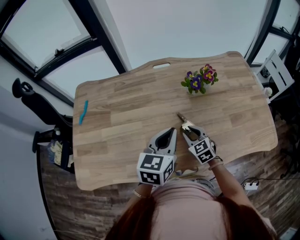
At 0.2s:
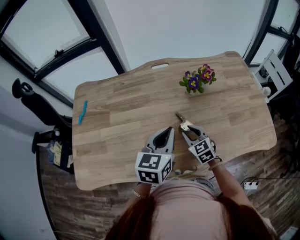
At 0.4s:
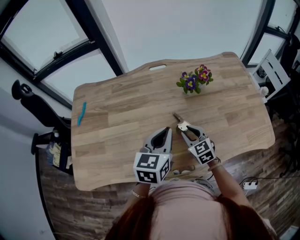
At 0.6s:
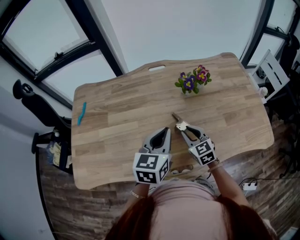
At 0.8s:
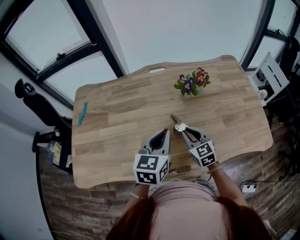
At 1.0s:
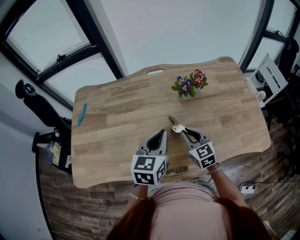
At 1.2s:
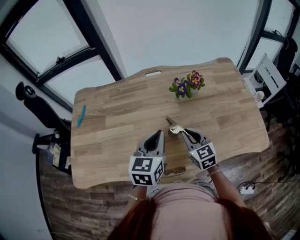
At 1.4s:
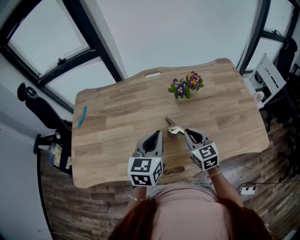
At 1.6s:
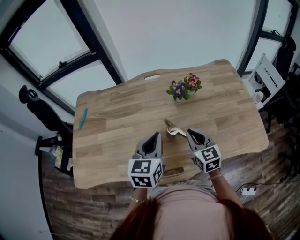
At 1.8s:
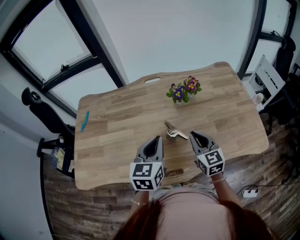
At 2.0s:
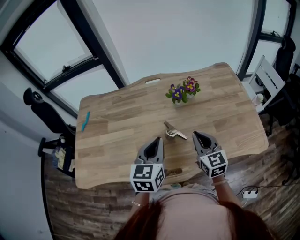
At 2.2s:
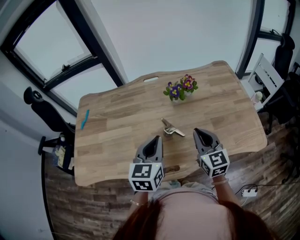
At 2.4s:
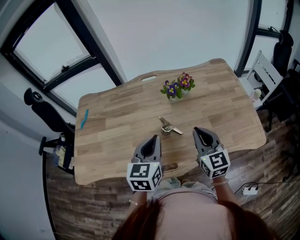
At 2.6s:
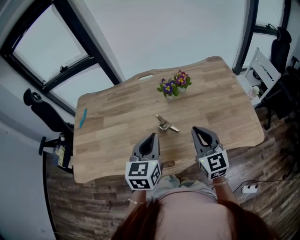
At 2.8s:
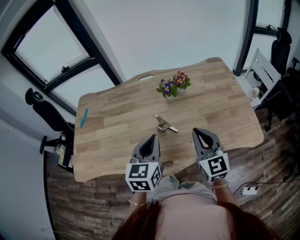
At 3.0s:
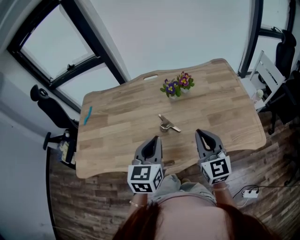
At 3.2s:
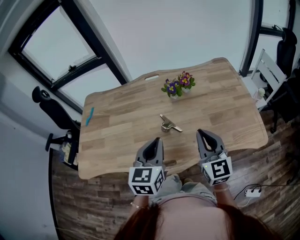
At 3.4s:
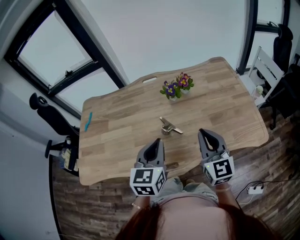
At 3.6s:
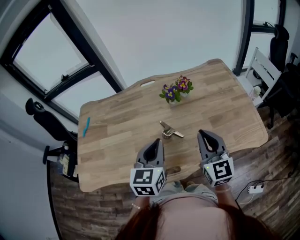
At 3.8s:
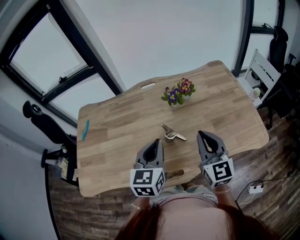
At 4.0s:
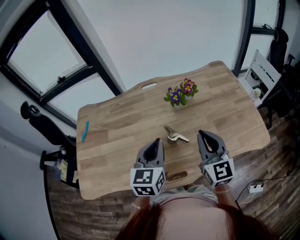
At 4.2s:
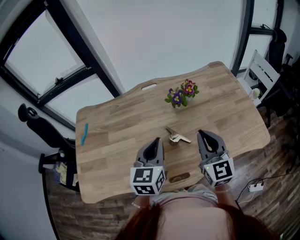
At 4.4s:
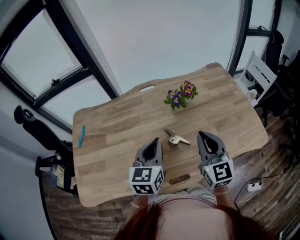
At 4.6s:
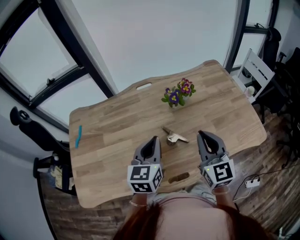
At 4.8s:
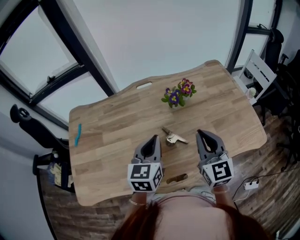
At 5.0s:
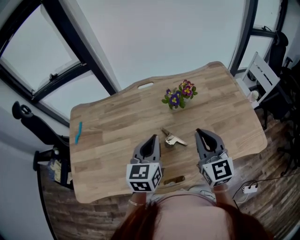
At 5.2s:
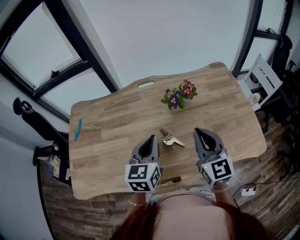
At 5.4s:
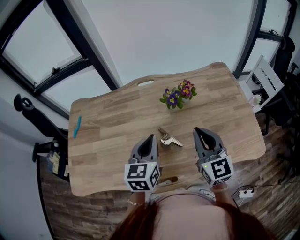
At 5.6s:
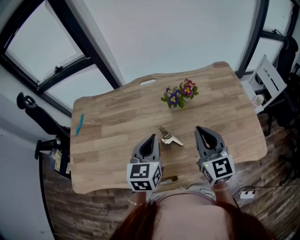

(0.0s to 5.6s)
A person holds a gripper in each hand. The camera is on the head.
0.0s - 1.4s: The right gripper is displaced upward and to the right by about 15 cm.
1.4s - 2.8s: The right gripper moves upward, to the right and backward, approximately 20 cm. The left gripper heads backward and to the right, covering some 10 cm.
2.8s - 4.2s: The left gripper moves forward and to the left, approximately 10 cm, while the right gripper shifts approximately 10 cm to the left and forward.
4.2s - 5.6s: The right gripper ends up approximately 5 cm from where it was.

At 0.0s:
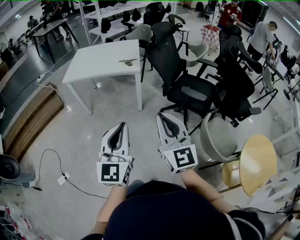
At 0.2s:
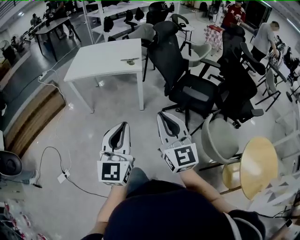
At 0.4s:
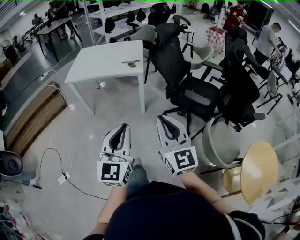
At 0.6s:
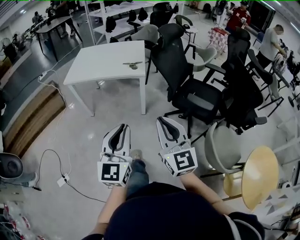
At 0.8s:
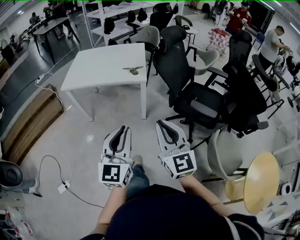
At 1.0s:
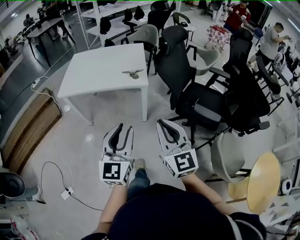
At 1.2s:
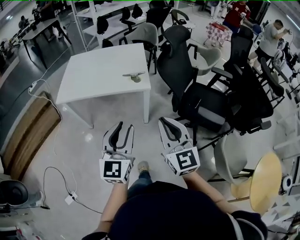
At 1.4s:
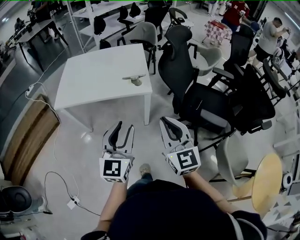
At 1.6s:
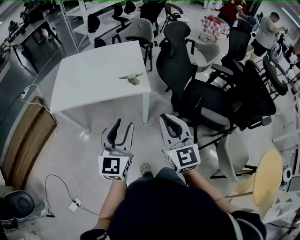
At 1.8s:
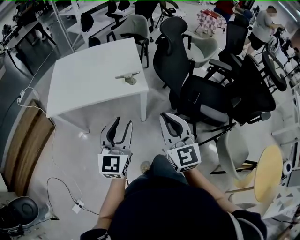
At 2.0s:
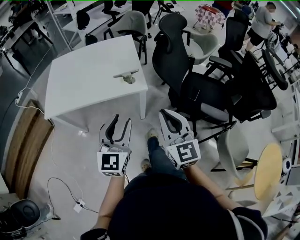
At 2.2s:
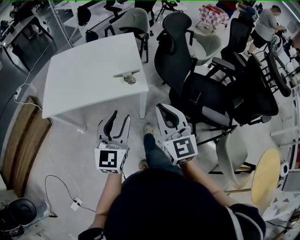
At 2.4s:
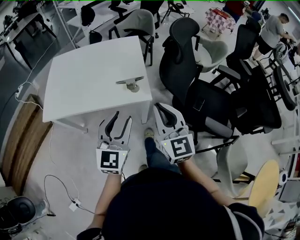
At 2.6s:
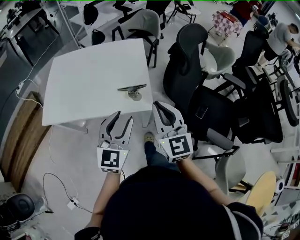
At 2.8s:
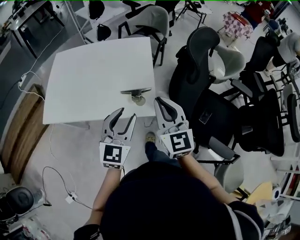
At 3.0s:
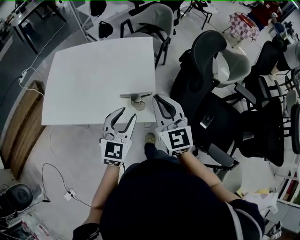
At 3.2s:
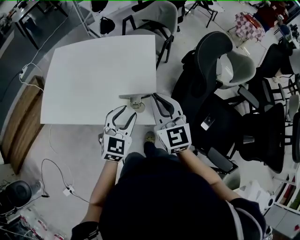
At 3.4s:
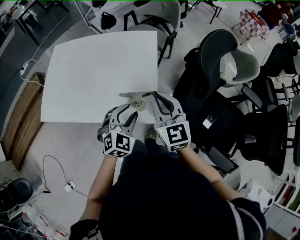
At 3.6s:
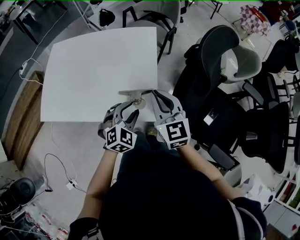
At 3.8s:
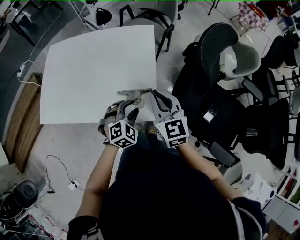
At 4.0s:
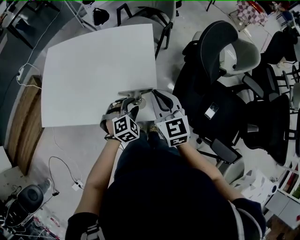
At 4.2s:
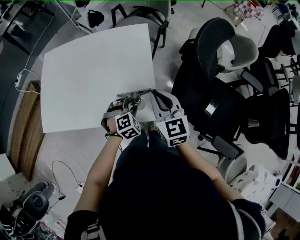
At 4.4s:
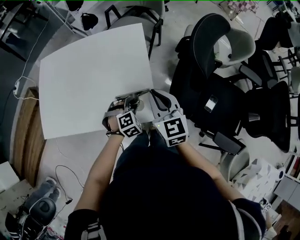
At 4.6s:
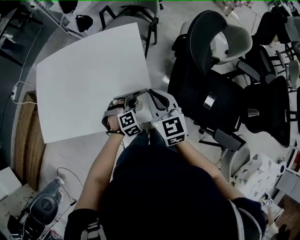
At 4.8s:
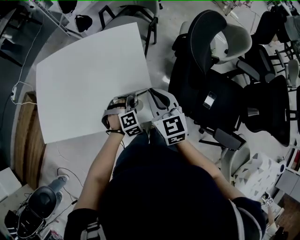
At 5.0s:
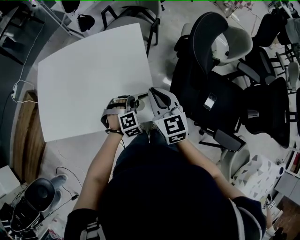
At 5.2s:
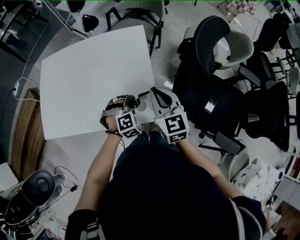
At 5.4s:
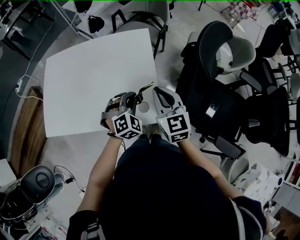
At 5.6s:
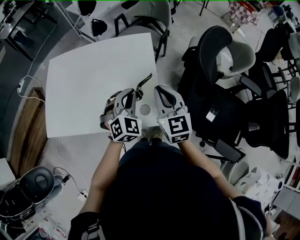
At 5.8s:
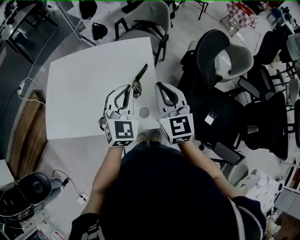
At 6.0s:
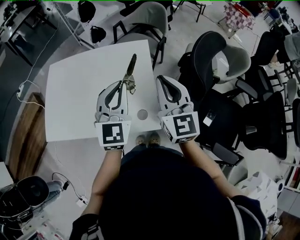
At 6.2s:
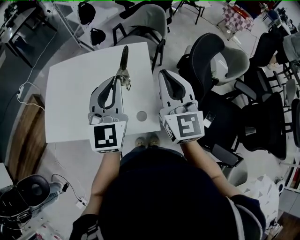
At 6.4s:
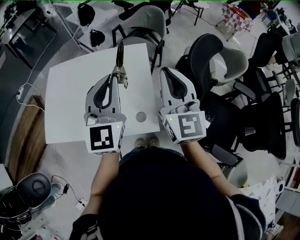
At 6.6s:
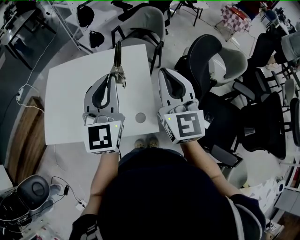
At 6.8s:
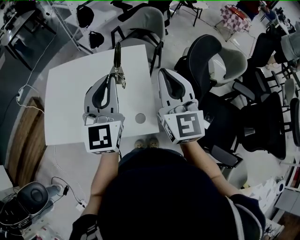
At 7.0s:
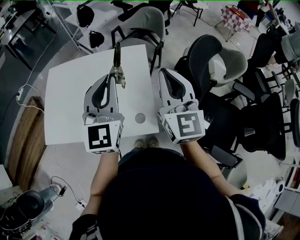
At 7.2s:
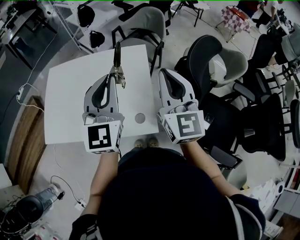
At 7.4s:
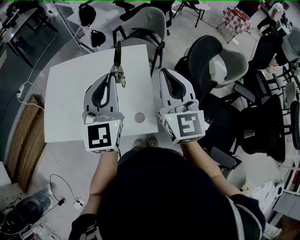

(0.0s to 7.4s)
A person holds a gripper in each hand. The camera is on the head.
0.0s - 1.4s: The two grippers go some 35 cm forward. The left gripper opens up.
1.4s - 3.0s: The grippers both shift forward by some 35 cm.
3.0s - 4.4s: The right gripper is displaced downward and forward by roughly 10 cm, while the left gripper shifts approximately 20 cm downward and forward, and tips its fingers downward by approximately 40 degrees.
4.4s - 6.0s: The right gripper moves upward, about 15 cm. The left gripper is displaced upward by roughly 30 cm, tips its fingers upward by roughly 50 degrees, and closes up.
6.0s - 7.4s: Both grippers move upward, about 5 cm.

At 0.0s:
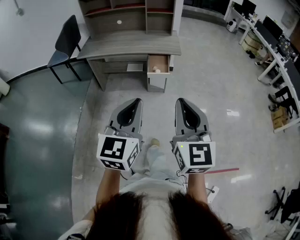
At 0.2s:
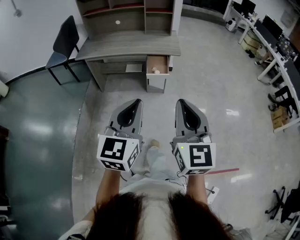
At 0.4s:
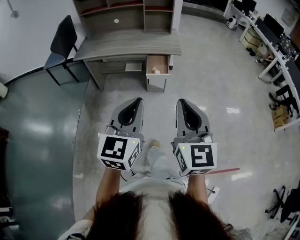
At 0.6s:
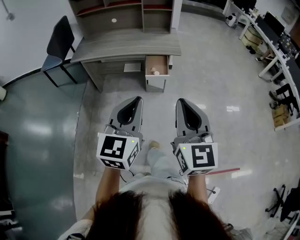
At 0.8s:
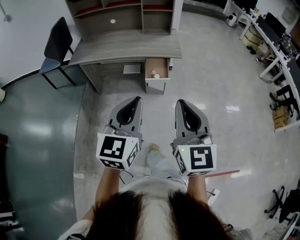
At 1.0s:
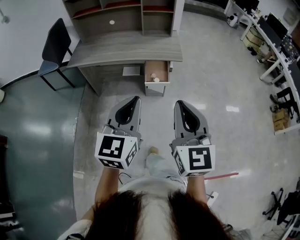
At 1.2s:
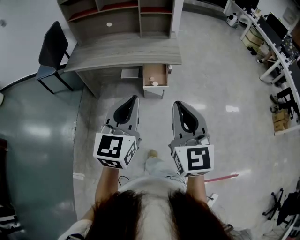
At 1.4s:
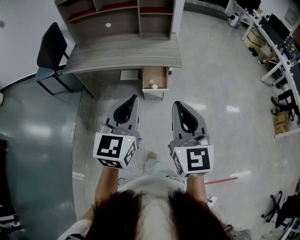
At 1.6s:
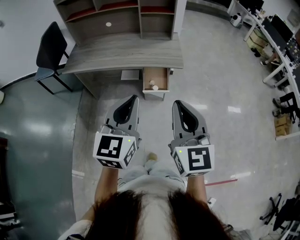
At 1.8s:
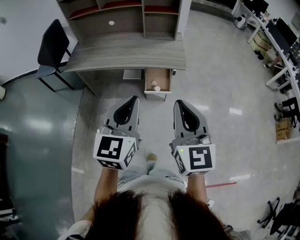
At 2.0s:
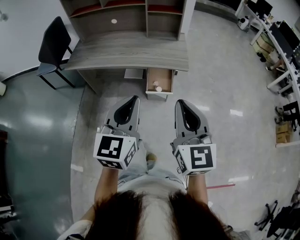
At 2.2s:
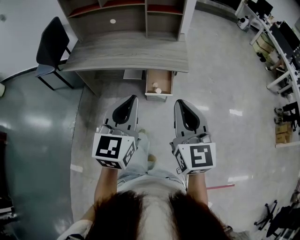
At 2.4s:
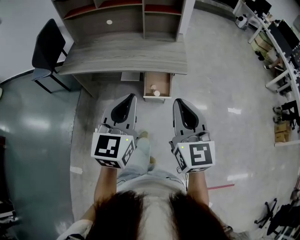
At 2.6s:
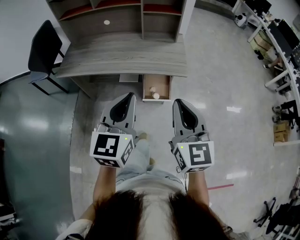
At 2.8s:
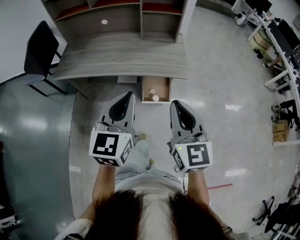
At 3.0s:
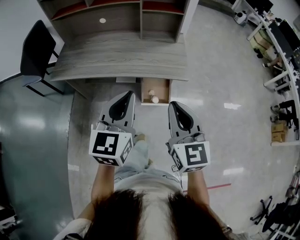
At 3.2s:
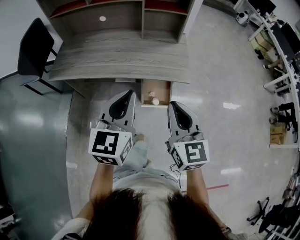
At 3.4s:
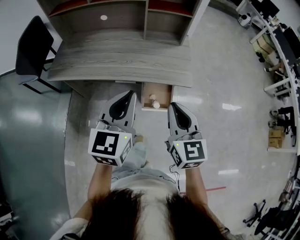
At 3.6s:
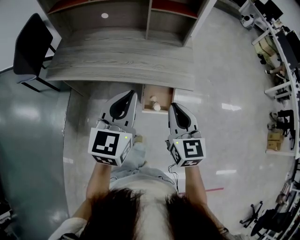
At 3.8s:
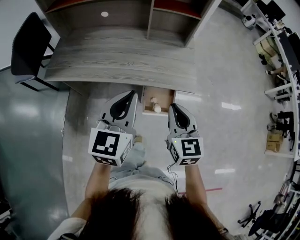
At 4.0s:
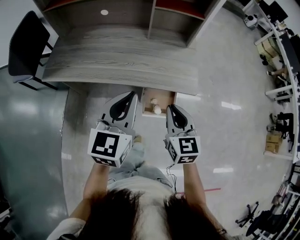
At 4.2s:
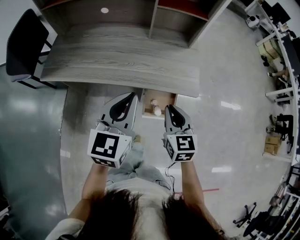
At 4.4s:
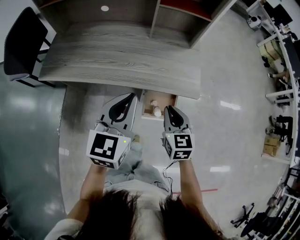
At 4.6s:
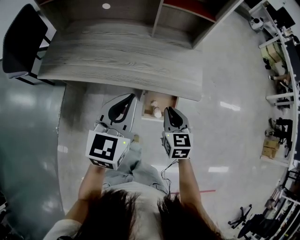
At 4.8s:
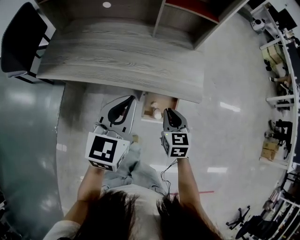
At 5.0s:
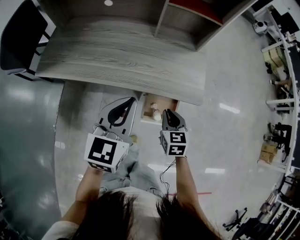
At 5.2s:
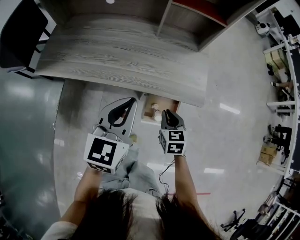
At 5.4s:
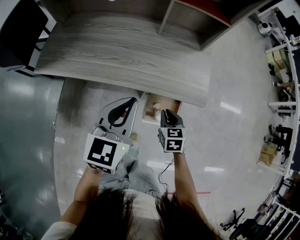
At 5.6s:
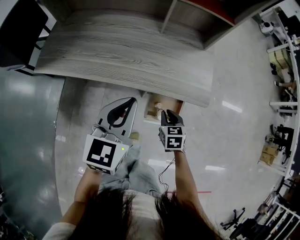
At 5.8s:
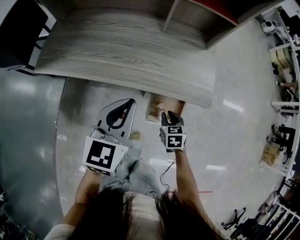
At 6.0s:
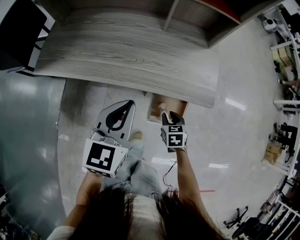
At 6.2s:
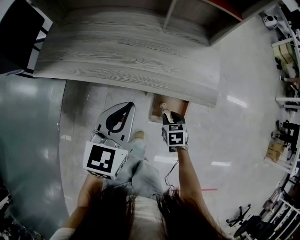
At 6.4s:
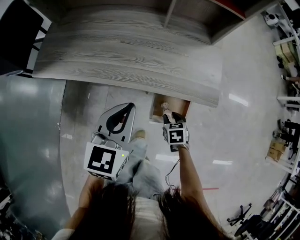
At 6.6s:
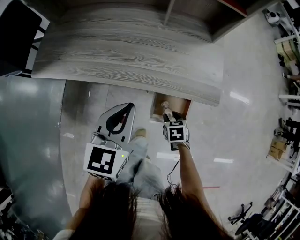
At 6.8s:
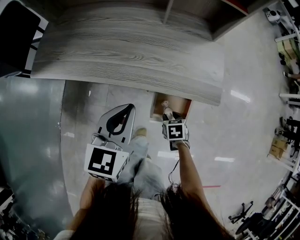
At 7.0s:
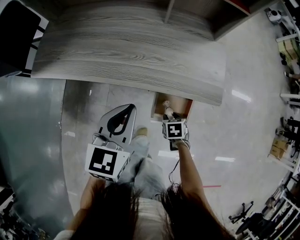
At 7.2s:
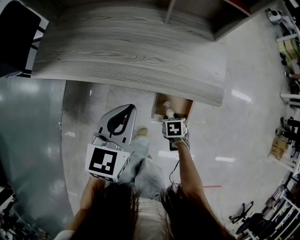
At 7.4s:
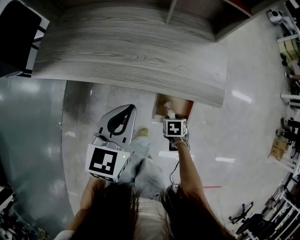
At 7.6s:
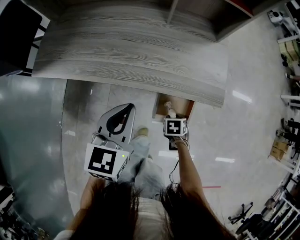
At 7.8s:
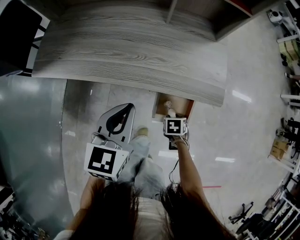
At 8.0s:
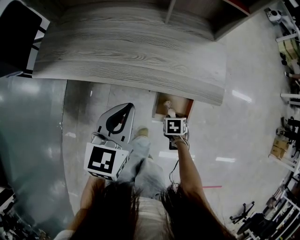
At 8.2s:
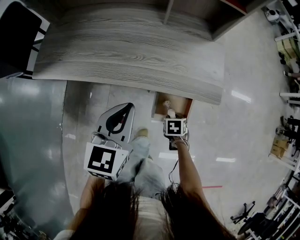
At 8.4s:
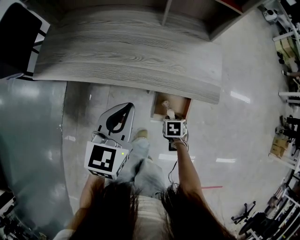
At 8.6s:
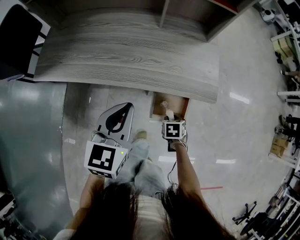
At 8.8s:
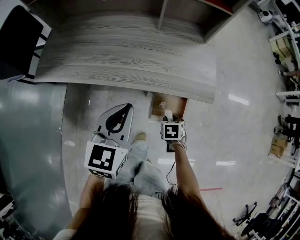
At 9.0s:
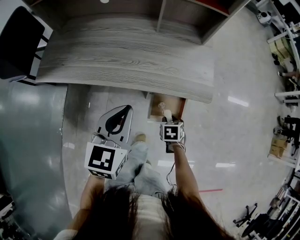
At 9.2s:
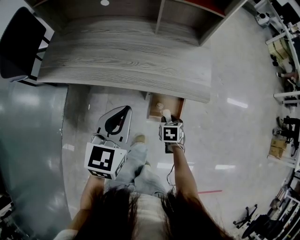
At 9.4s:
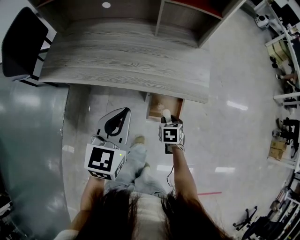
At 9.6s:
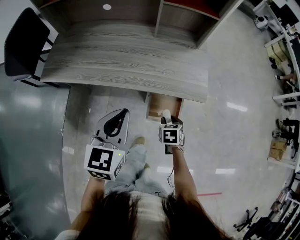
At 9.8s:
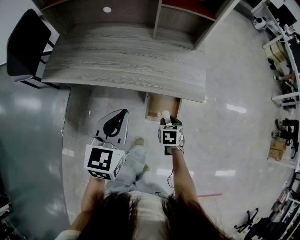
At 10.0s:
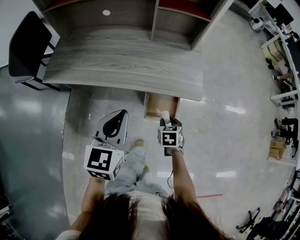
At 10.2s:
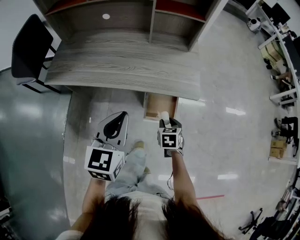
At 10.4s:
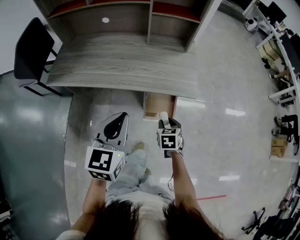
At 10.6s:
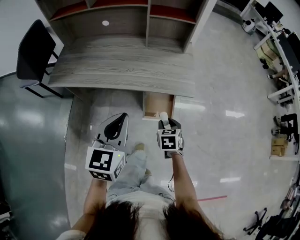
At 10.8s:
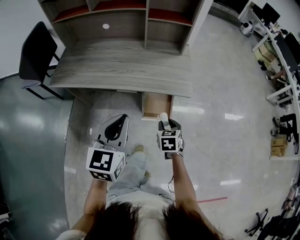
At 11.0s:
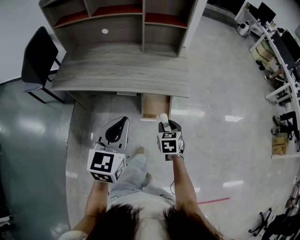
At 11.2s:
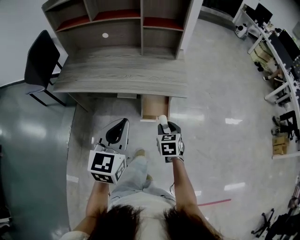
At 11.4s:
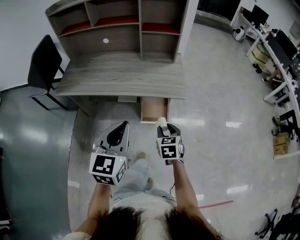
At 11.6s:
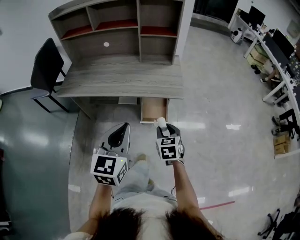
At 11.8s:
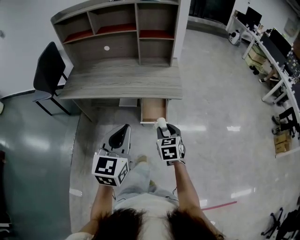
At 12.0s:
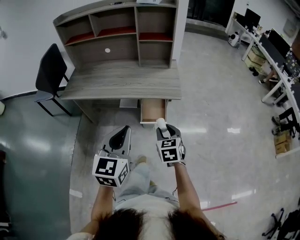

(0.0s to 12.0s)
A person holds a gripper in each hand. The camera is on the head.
0.0s - 1.6s: The two grippers go approximately 25 cm forward.
1.6s - 3.0s: Both grippers move forward, roughly 20 cm.
3.0s - 4.4s: The right gripper shifts some 25 cm downward and forward, and turns by about 20 degrees. The left gripper shifts some 15 cm forward and downward.
4.4s - 6.0s: The right gripper heads downward, covering approximately 20 cm, and changes its angle by about 30 degrees, while the left gripper travels downward by approximately 10 cm.
6.0s - 7.6s: The right gripper travels downward by about 10 cm, and turns by approximately 20 degrees.
7.6s - 9.0s: The right gripper is displaced upward by approximately 5 cm. Meanwhile the left gripper ends up roughly 5 cm from where it was.
9.0s - 10.4s: The right gripper travels upward and backward by about 15 cm. The left gripper goes about 10 cm backward and upward.
10.4s - 12.0s: The right gripper heads upward and backward, covering roughly 20 cm, and changes its angle by some 20 degrees, while the left gripper shifts approximately 20 cm backward and upward.
